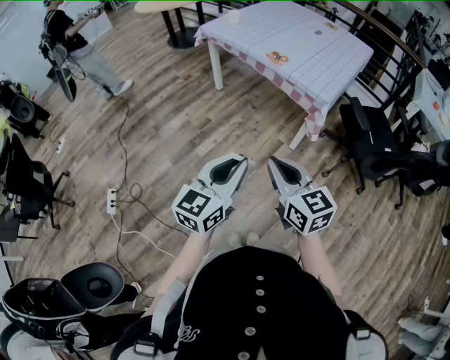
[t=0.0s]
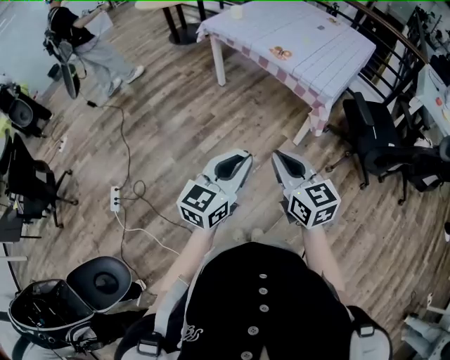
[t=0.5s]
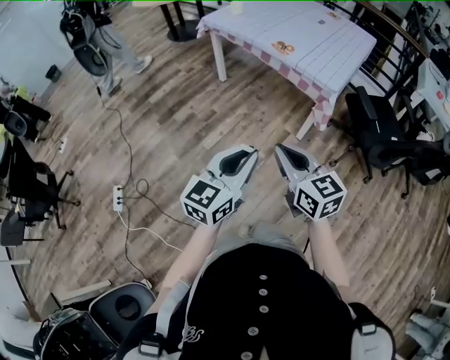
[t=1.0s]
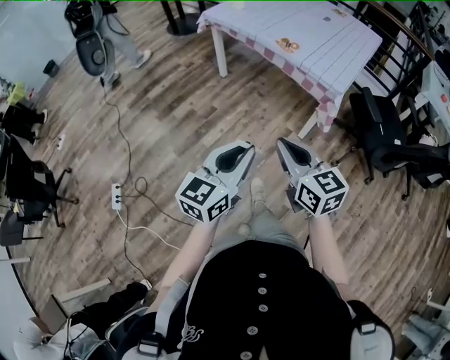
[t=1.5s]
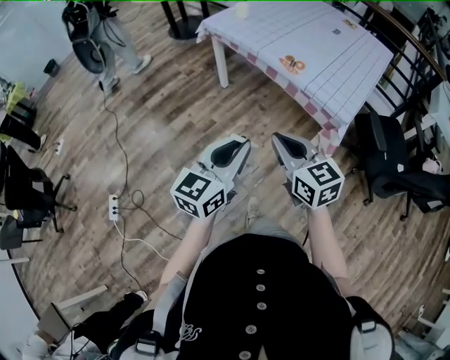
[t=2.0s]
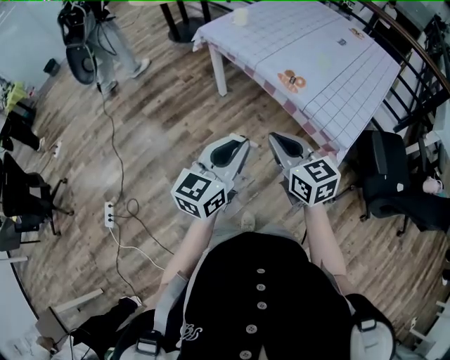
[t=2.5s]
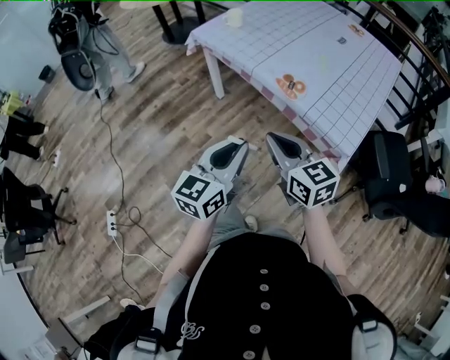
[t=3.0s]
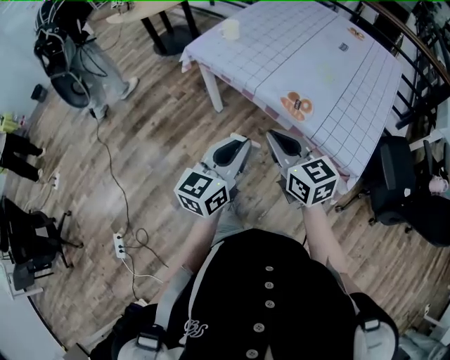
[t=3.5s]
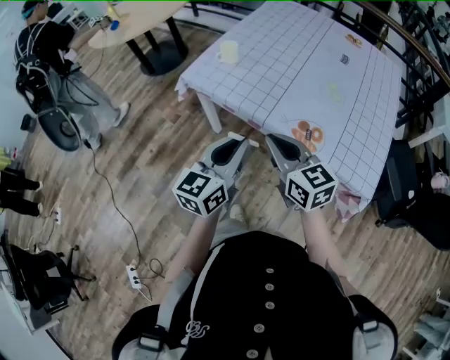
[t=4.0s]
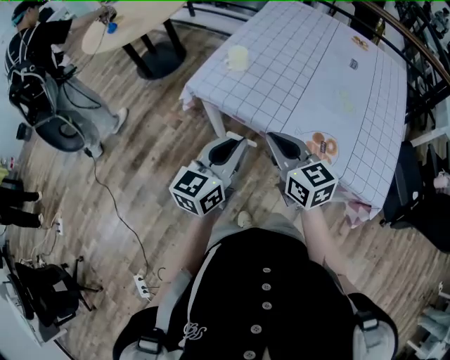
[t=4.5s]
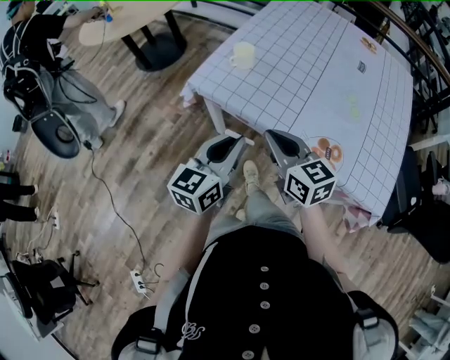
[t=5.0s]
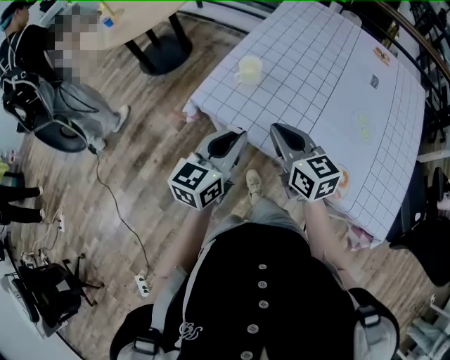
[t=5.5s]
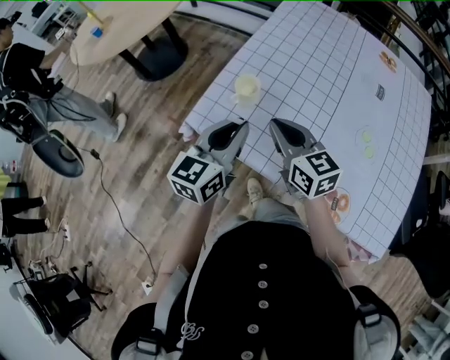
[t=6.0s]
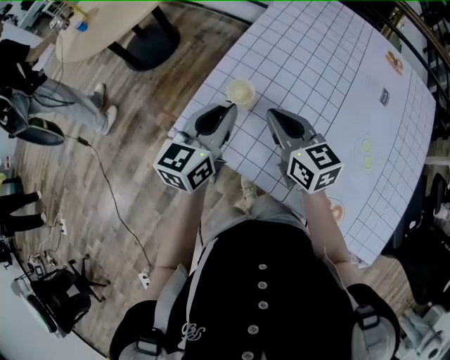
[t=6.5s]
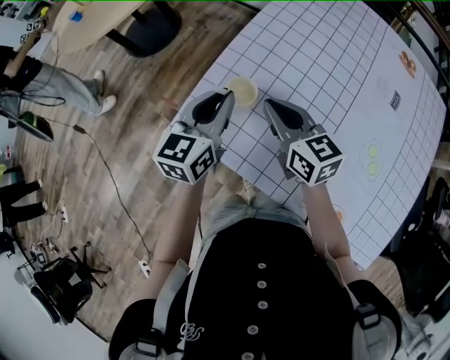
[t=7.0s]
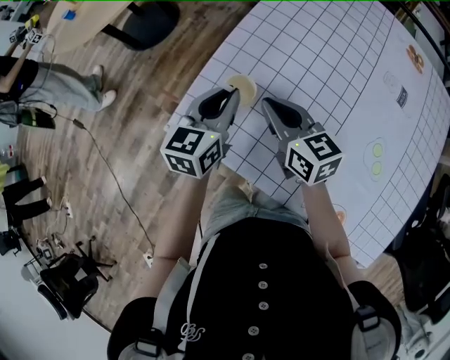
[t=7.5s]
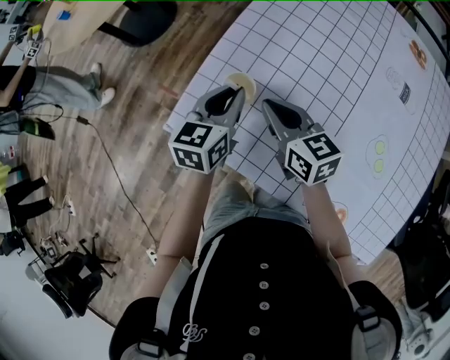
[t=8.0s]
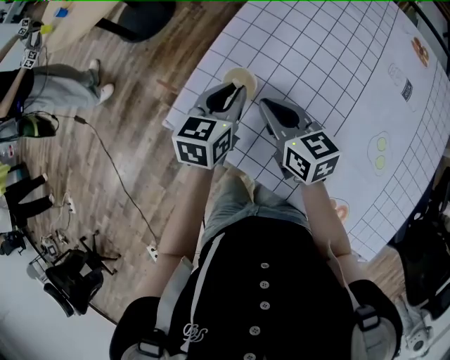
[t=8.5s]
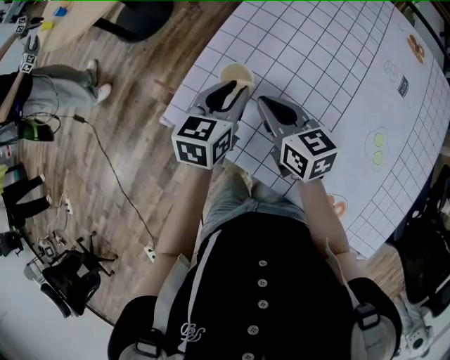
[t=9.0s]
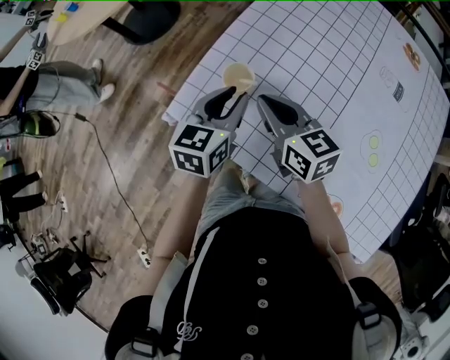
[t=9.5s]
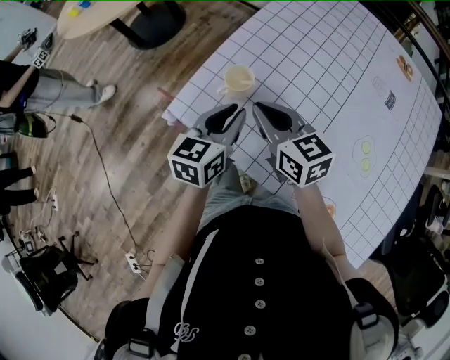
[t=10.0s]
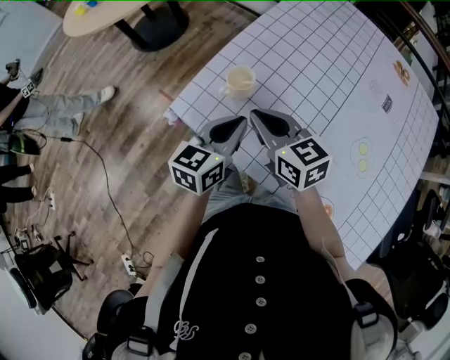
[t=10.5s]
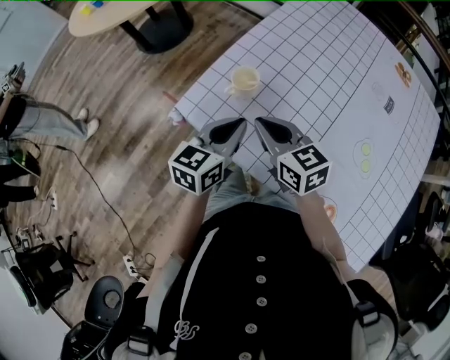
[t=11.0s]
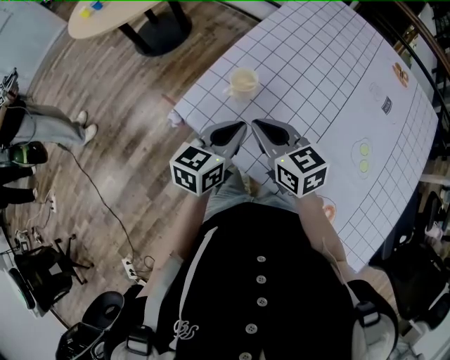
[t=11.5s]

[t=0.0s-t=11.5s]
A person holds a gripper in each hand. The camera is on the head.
t=0.0s to t=2.0s: The grippers both shift forward by about 20 cm.
t=2.0s to t=4.0s: Both grippers are carried forward, some 40 cm.
t=4.0s to t=6.0s: The grippers both shift forward by about 30 cm.
t=6.0s to t=7.5s: Both grippers move forward and downward, some 15 cm.
t=7.5s to t=9.5s: The grippers stay close to where they were, moving slightly.
t=9.5s to t=11.5s: Both grippers move backward, some 10 cm. The left gripper closes its fingers.

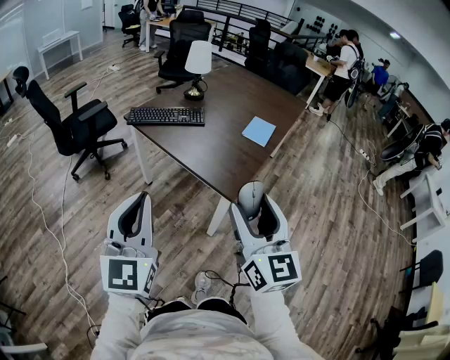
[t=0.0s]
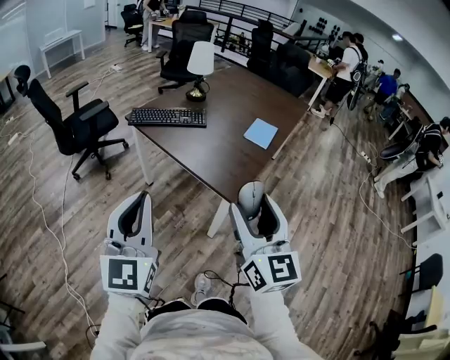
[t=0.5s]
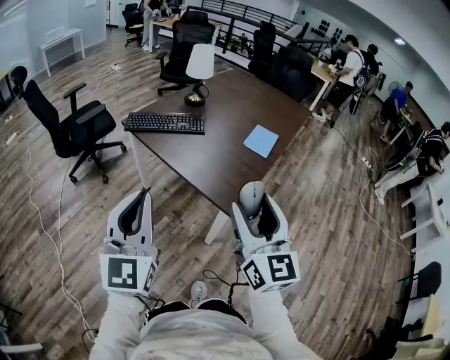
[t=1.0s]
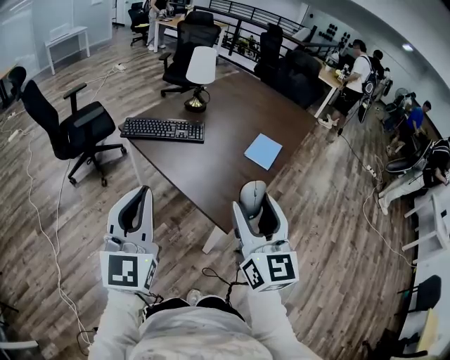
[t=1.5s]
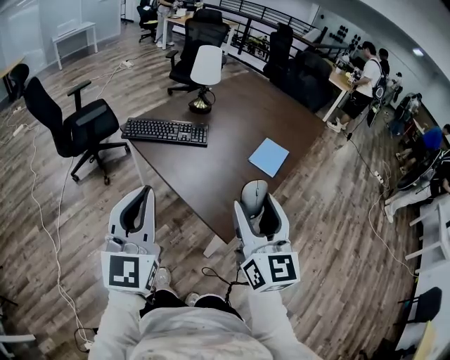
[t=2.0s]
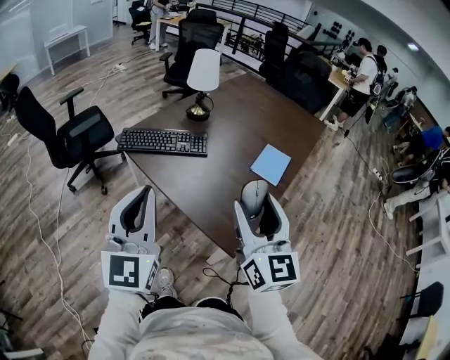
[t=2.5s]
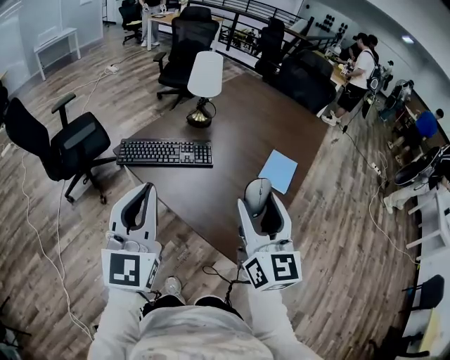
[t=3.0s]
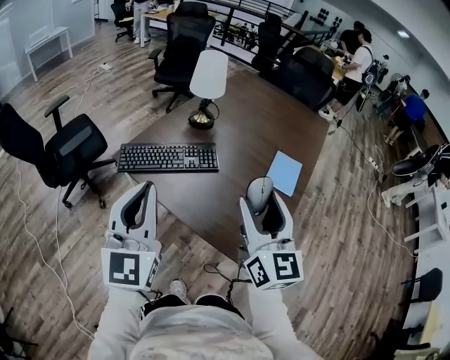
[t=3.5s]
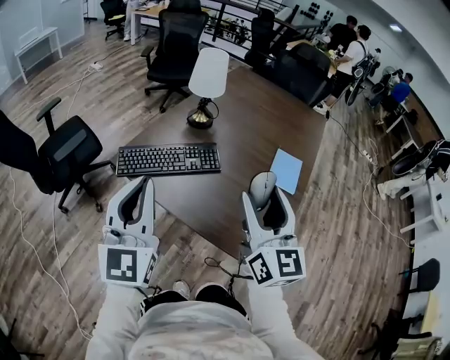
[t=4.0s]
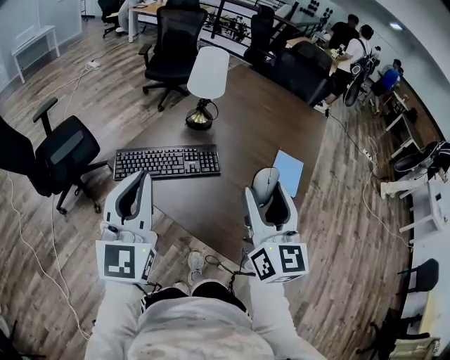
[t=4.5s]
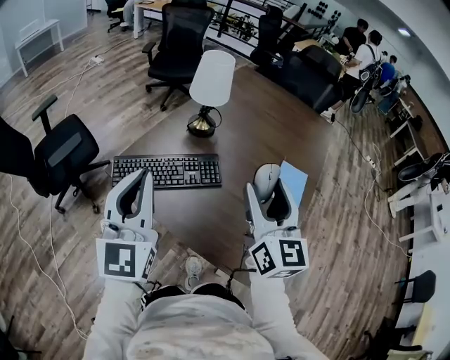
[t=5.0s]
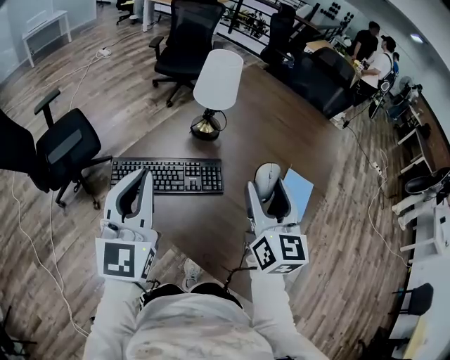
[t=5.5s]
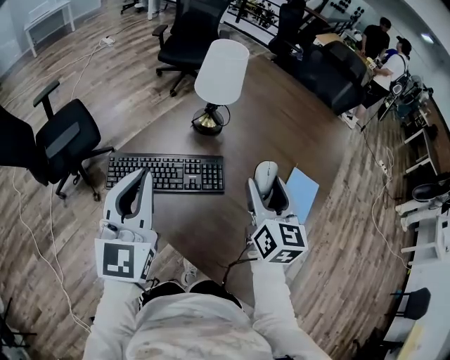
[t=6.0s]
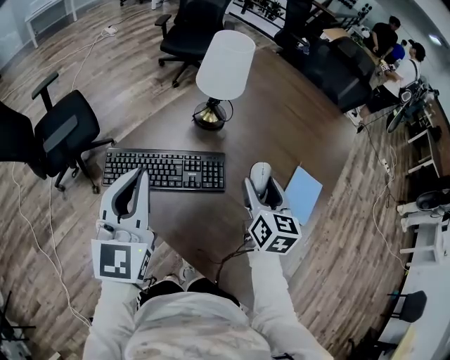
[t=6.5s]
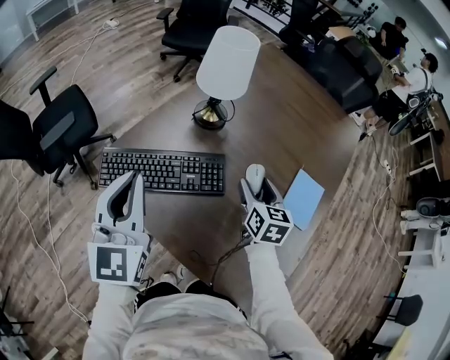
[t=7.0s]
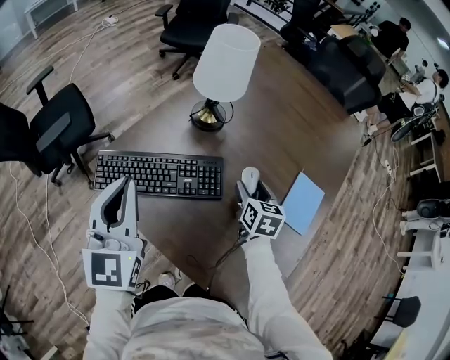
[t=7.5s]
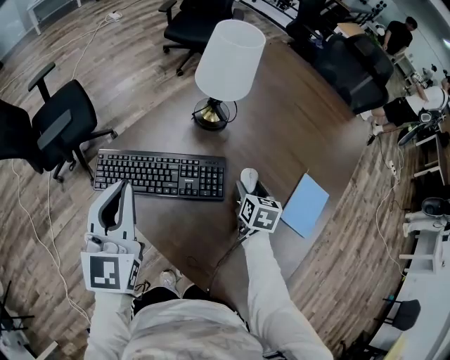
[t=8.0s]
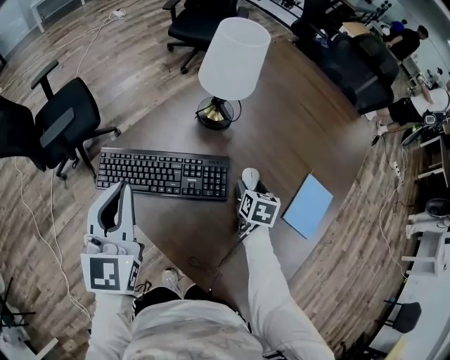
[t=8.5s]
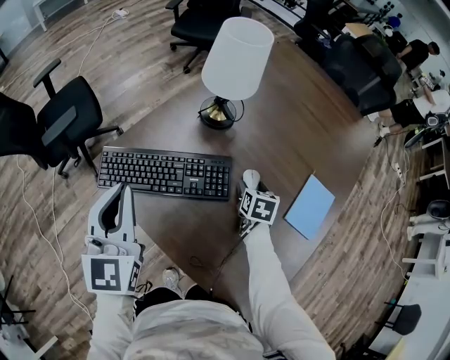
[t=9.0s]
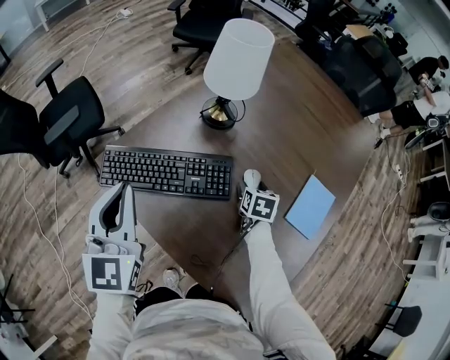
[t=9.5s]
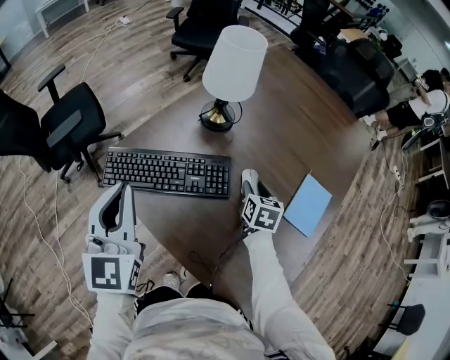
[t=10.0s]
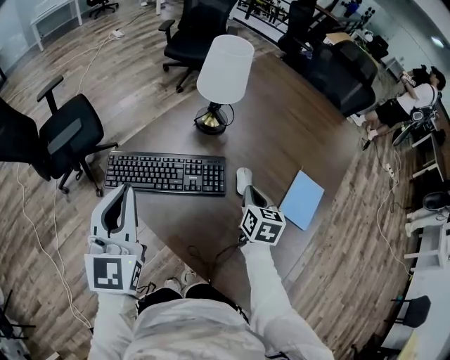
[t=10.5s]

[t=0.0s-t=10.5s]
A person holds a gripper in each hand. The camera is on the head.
t=0.0s to t=2.0s: Both grippers travel together forward, some 20 cm.
t=2.0s to t=4.0s: The grippers both shift forward and to the left by roughly 25 cm.
t=4.0s to t=6.5s: The left gripper goes roughly 20 cm forward, while the right gripper goes roughly 30 cm forward and downward, and changes its angle by about 30 degrees.
t=6.5s to t=8.5s: The left gripper goes roughly 5 cm downward. The right gripper heads downward and forward, covering approximately 20 cm, and changes its angle by roughly 30 degrees.
t=8.5s to t=10.5s: The right gripper goes about 10 cm upward and backward, and closes up, while the left gripper is displaced backward by roughly 5 cm.

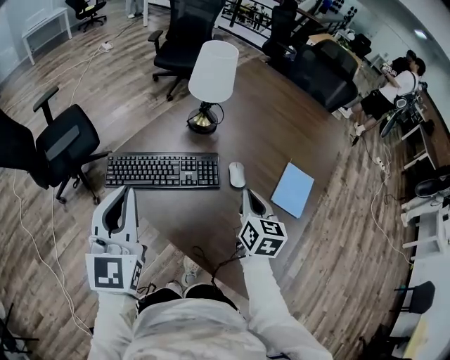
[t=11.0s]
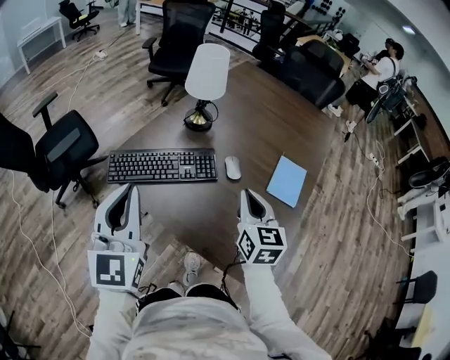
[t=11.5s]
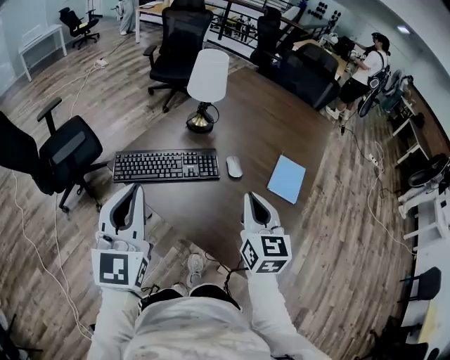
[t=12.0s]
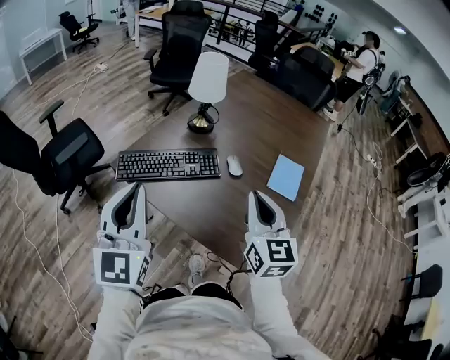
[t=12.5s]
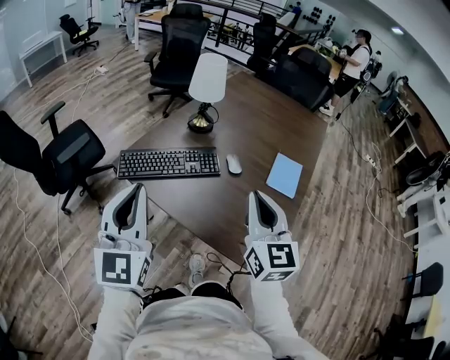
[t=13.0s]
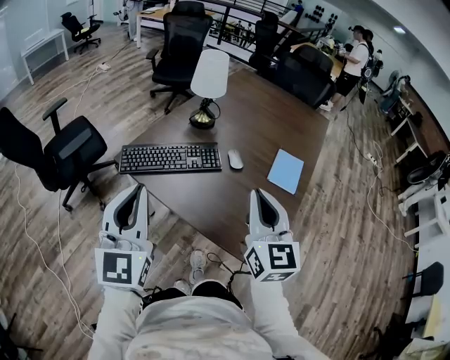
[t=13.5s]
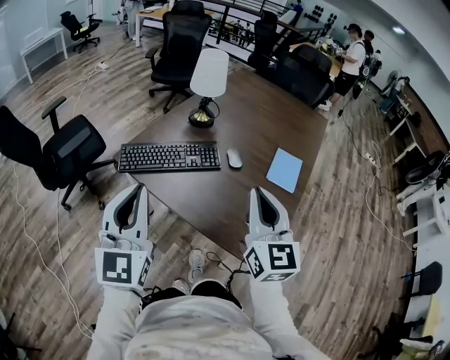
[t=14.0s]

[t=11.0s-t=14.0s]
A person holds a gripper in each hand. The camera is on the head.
t=11.0s to t=12.5s: The right gripper travels backward and upward by roughly 20 cm, and swivels about 20 degrees; the left gripper shifts approximately 10 cm backward.
t=12.5s to t=14.0s: The right gripper heads backward, covering some 5 cm.

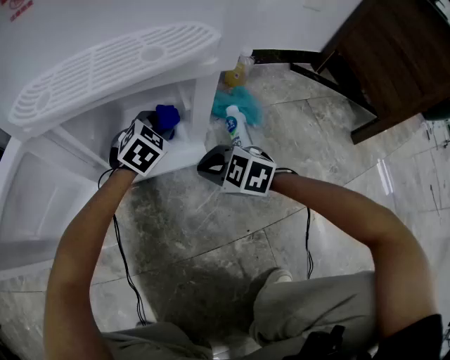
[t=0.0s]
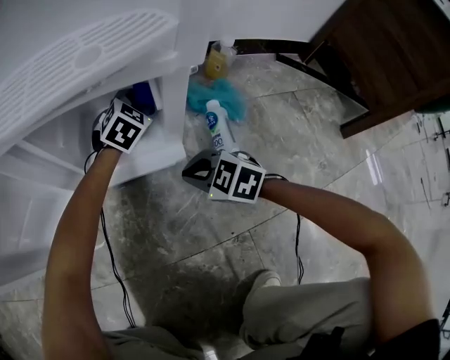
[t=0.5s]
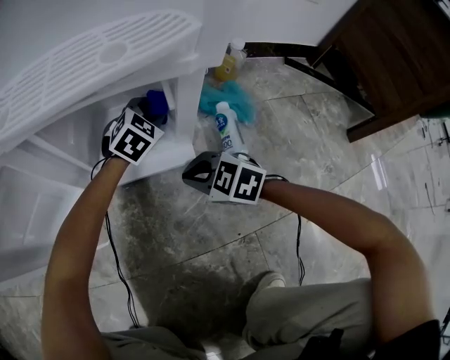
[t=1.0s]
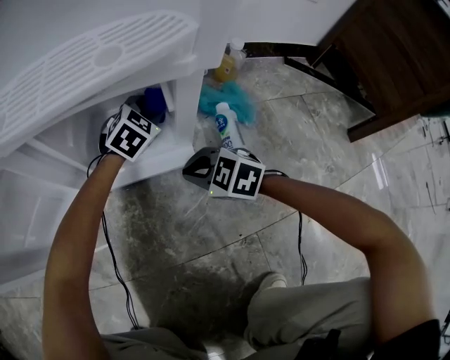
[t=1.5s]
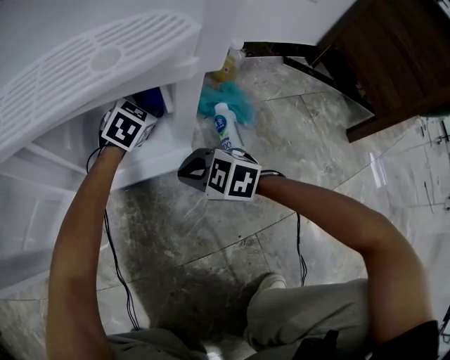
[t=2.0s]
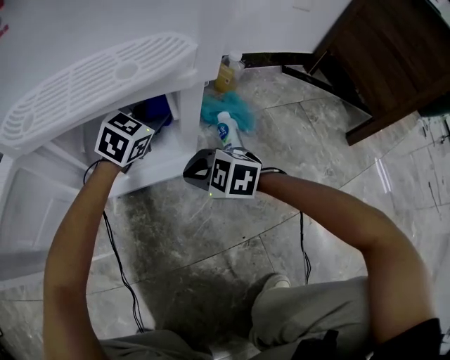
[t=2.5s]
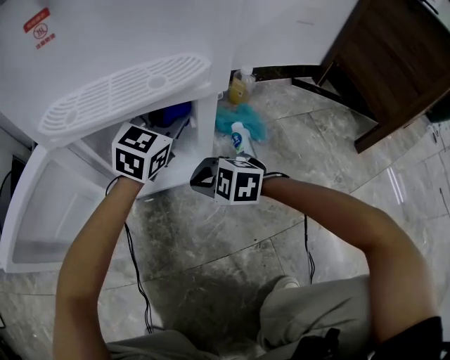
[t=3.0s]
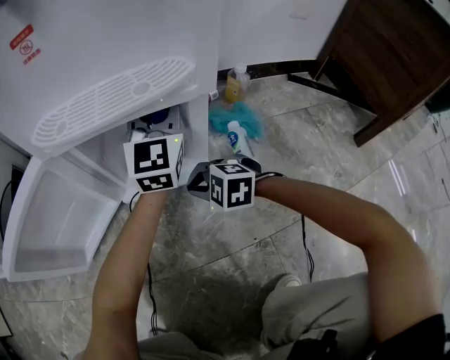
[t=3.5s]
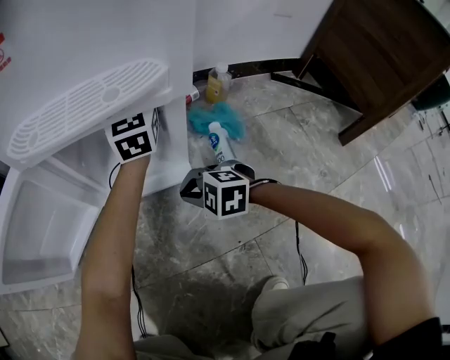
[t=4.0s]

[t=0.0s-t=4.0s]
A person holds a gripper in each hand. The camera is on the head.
t=0.0s to t=2.0s: The left gripper shifts about 5 cm forward.
t=2.0s to t=4.0s: The left gripper shifts about 25 cm upward, and tilts its fingers some 40 degrees upward.
